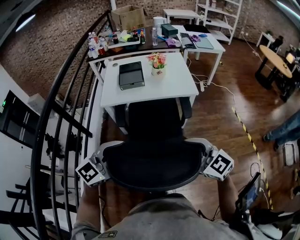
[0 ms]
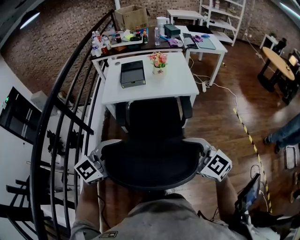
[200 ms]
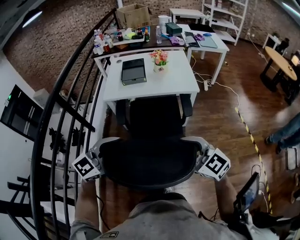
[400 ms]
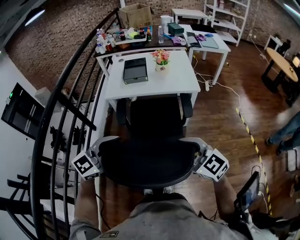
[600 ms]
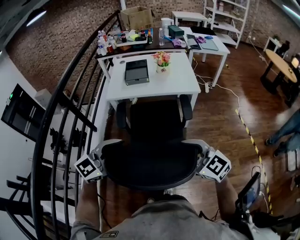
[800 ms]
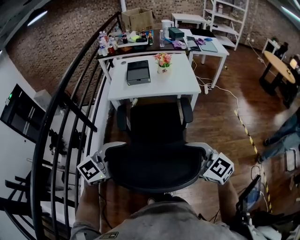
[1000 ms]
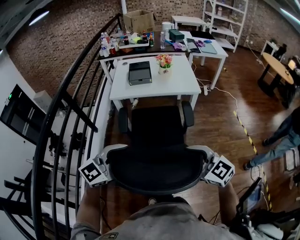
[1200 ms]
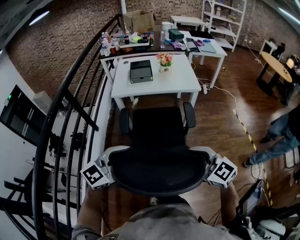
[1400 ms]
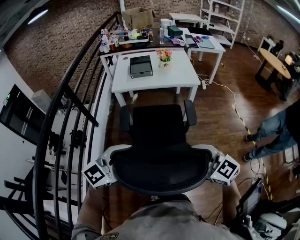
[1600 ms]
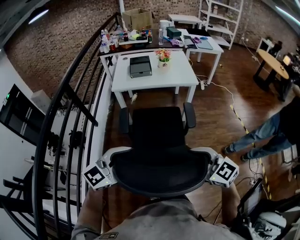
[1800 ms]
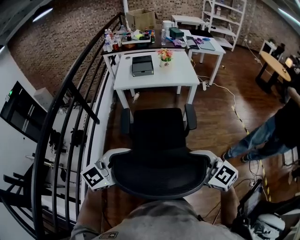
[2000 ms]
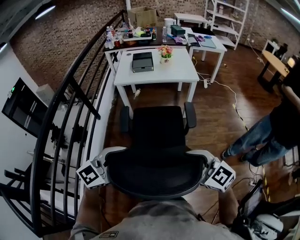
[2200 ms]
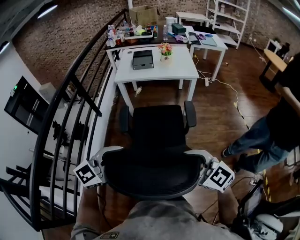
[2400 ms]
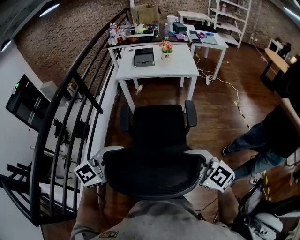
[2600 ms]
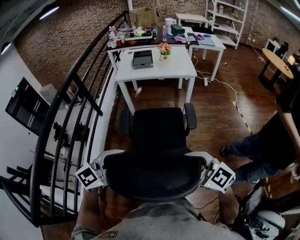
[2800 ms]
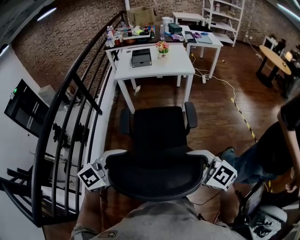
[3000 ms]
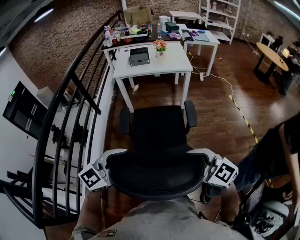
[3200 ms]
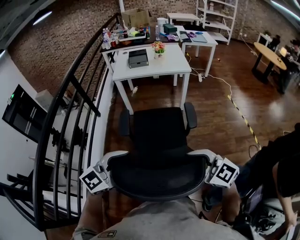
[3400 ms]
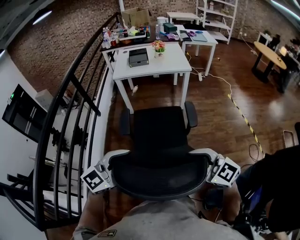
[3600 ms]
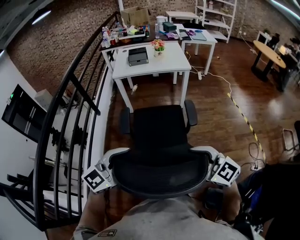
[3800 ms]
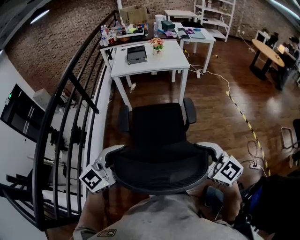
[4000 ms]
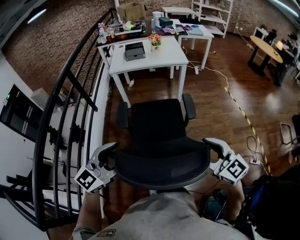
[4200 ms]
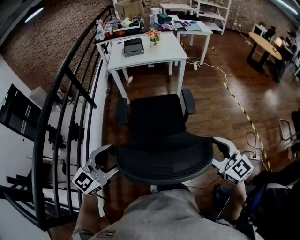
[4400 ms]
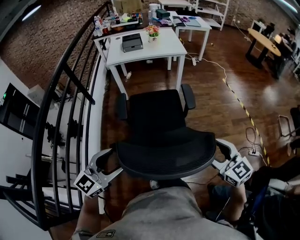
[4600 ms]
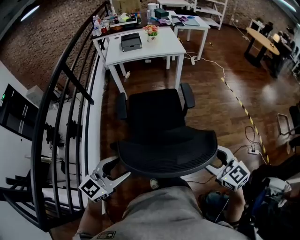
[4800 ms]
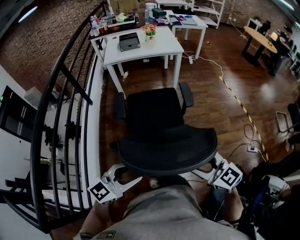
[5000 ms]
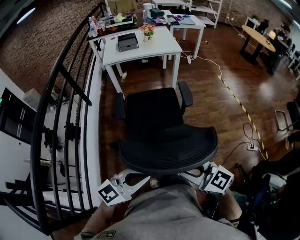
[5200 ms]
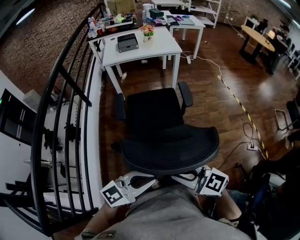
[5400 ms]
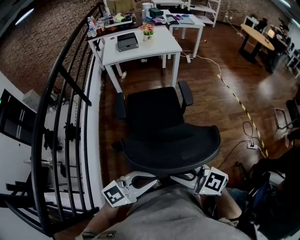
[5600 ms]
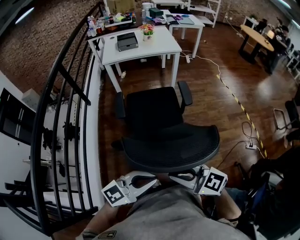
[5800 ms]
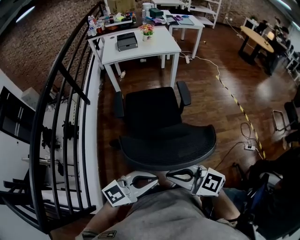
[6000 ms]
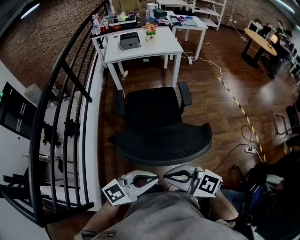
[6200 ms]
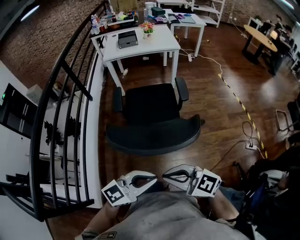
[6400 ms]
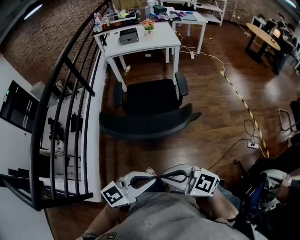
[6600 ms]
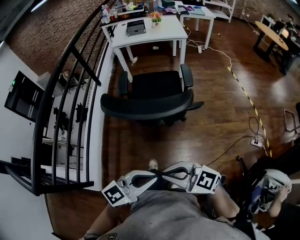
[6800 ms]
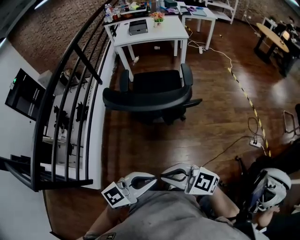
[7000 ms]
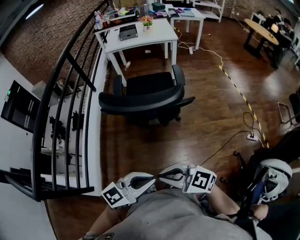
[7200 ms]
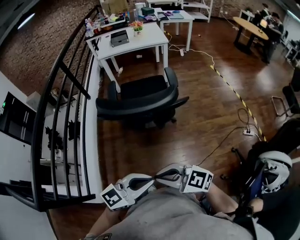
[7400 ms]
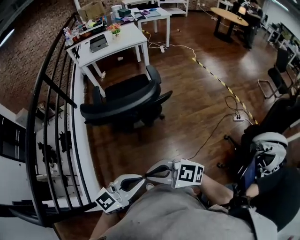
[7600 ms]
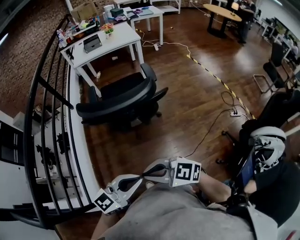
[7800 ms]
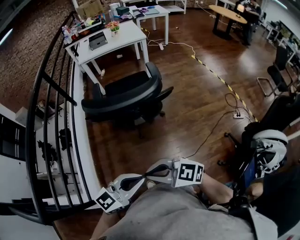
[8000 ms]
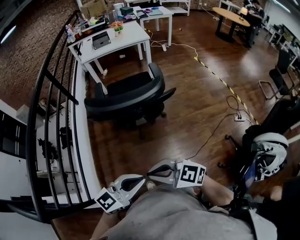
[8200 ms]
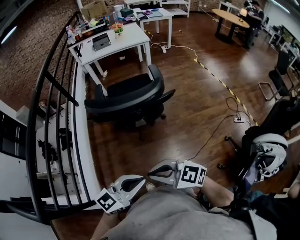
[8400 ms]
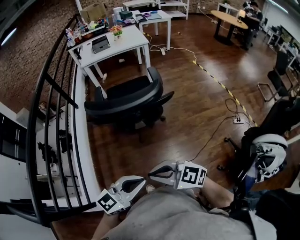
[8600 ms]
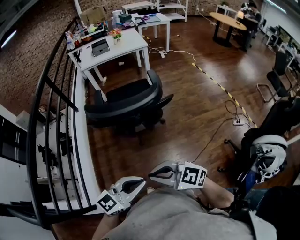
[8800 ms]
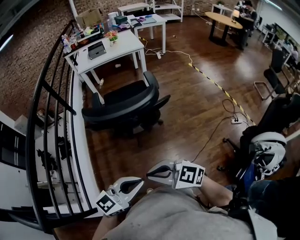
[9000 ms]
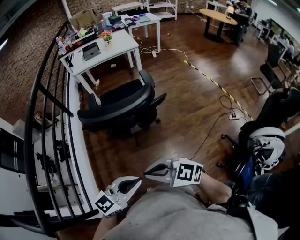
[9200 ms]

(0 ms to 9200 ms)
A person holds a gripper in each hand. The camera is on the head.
0 ms - 1600 ms: The grippers both shift backward by roughly 20 cm.
1600 ms - 3000 ms: The two grippers go some 20 cm backward.
3000 ms - 4600 ms: The left gripper travels to the left and backward by roughly 10 cm. Meanwhile the right gripper is displaced to the right and backward by some 10 cm, and swivels roughly 30 degrees.
4600 ms - 6200 ms: The left gripper moves about 20 cm, rotates some 30 degrees, and closes; the right gripper moves about 20 cm, rotates approximately 40 degrees, and closes up.
6200 ms - 7600 ms: The right gripper changes place by approximately 15 cm, while the left gripper shifts by about 15 cm.
7600 ms - 9200 ms: There are only small adjustments of the grippers.

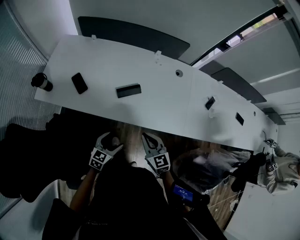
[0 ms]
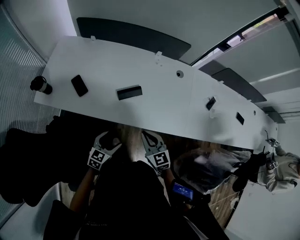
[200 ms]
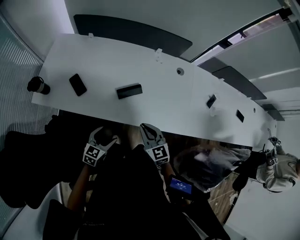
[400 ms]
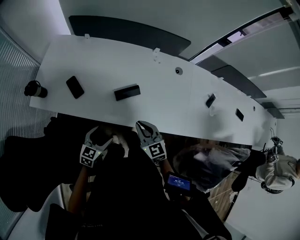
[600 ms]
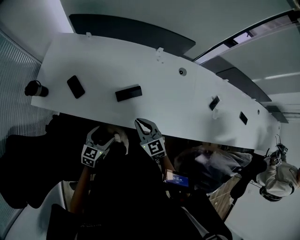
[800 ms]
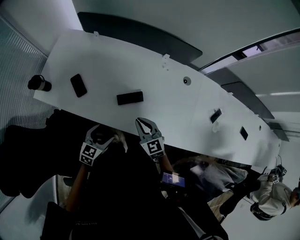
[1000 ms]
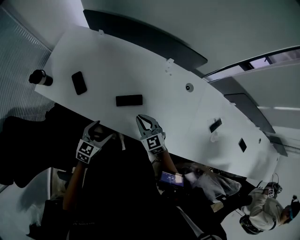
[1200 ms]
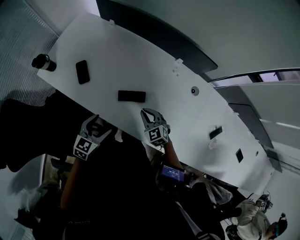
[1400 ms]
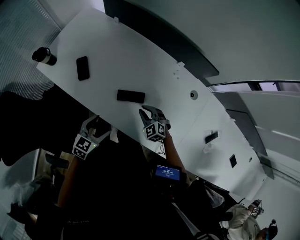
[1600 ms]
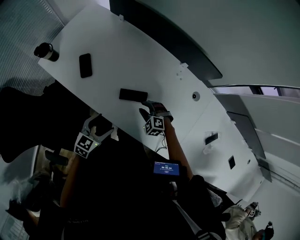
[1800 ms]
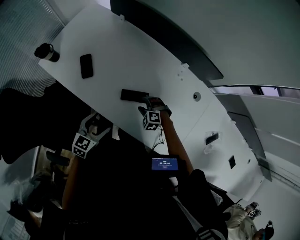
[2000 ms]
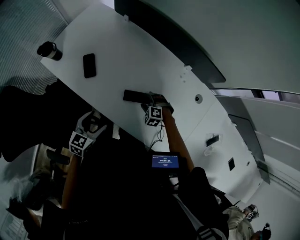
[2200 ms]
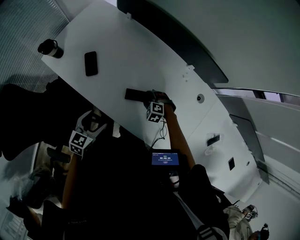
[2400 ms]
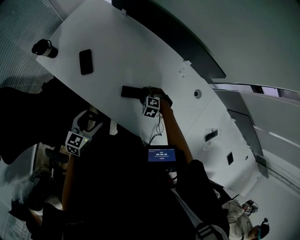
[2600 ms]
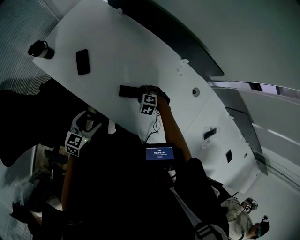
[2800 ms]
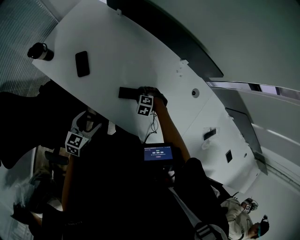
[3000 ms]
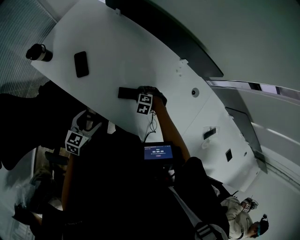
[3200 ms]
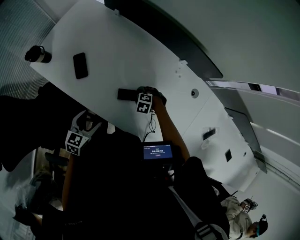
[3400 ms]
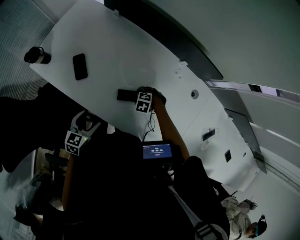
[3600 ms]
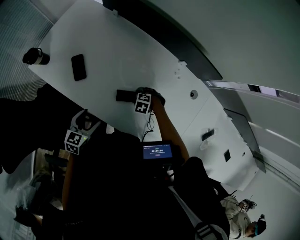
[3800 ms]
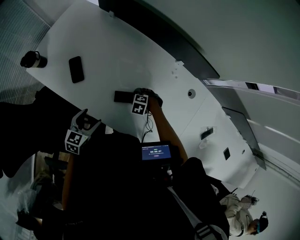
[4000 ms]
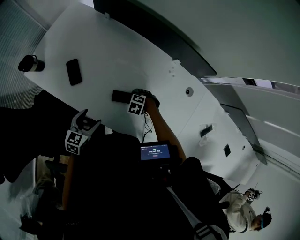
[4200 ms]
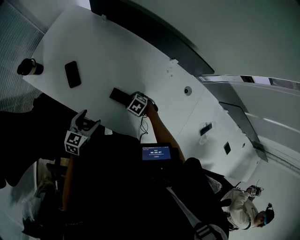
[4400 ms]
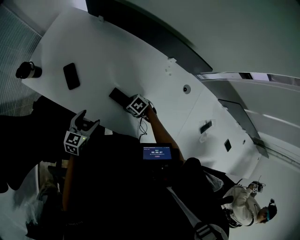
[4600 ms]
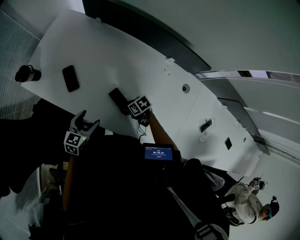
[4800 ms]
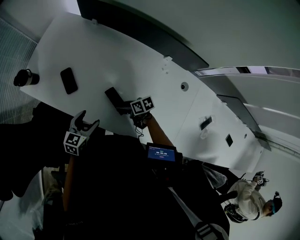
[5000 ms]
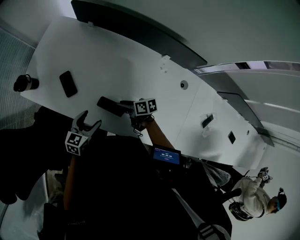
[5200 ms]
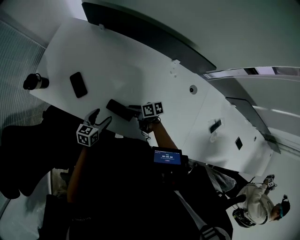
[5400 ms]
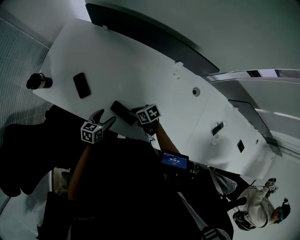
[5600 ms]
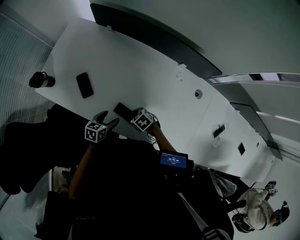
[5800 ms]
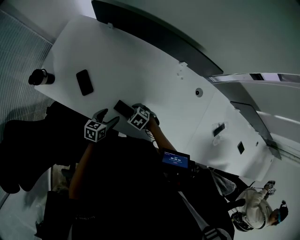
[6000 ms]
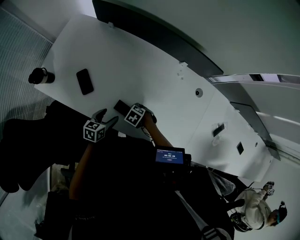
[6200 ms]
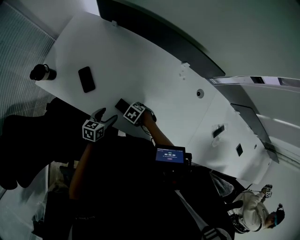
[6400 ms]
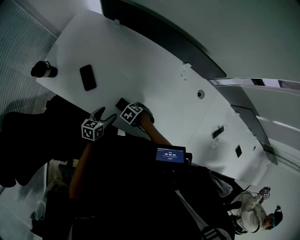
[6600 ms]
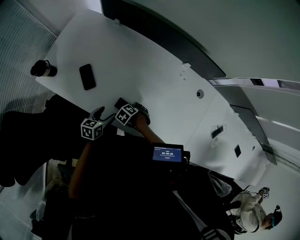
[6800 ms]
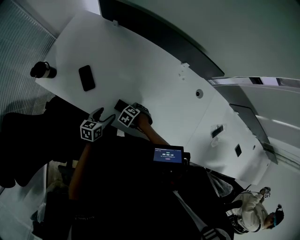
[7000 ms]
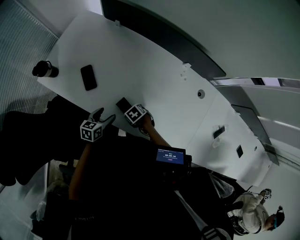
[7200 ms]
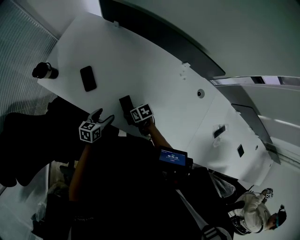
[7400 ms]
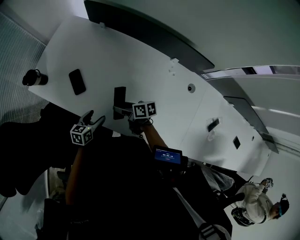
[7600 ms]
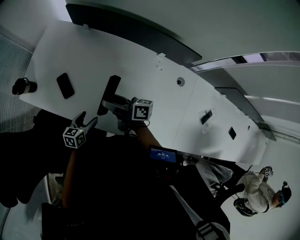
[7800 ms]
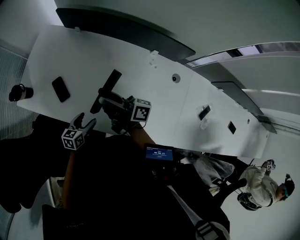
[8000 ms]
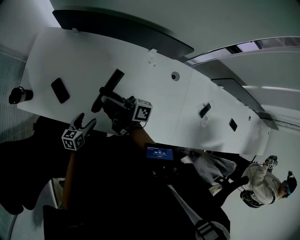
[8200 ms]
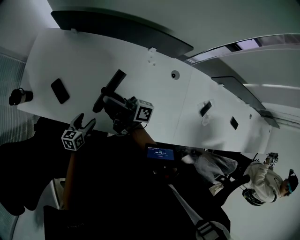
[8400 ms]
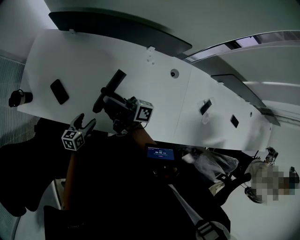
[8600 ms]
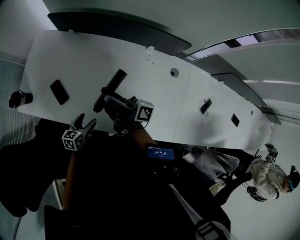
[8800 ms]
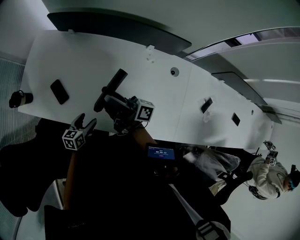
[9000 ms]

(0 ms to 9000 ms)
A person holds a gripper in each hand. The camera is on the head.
0 ms - 1600 ms: The left gripper shifts by some 15 cm, while the right gripper ends up roughly 25 cm from where it was, and changes its angle by roughly 50 degrees.
1600 ms - 3000 ms: The left gripper changes place by roughly 5 cm. Meanwhile the right gripper travels downward by roughly 10 cm, angles its fingers downward, by approximately 30 degrees, and opens its fingers.
3000 ms - 4400 ms: The right gripper changes its angle by approximately 30 degrees. The left gripper ends up roughly 5 cm from where it was.
4400 ms - 6000 ms: The left gripper is displaced downward by about 10 cm. The right gripper moves some 10 cm, and closes, then reopens.
6000 ms - 7600 ms: The right gripper is displaced upward by roughly 5 cm, and tilts its fingers about 40 degrees upward.
7600 ms - 9000 ms: The right gripper shifts approximately 20 cm upward, and angles its fingers upward, by some 50 degrees.

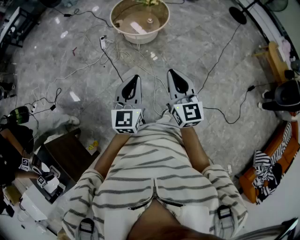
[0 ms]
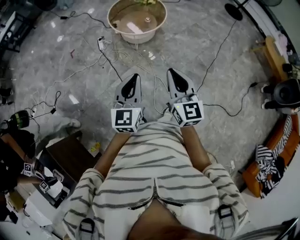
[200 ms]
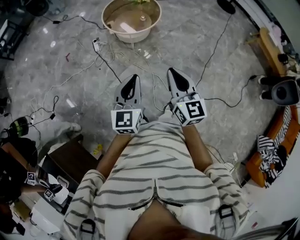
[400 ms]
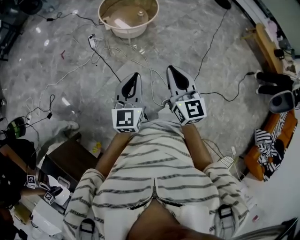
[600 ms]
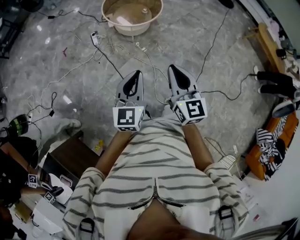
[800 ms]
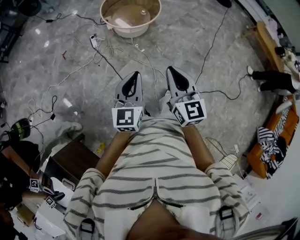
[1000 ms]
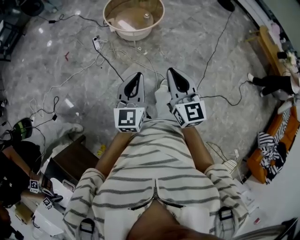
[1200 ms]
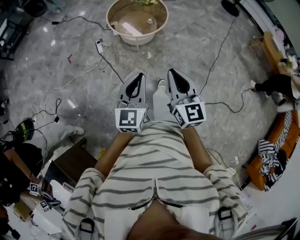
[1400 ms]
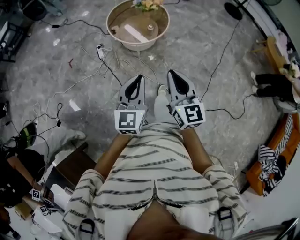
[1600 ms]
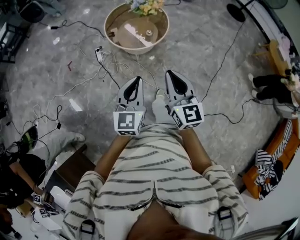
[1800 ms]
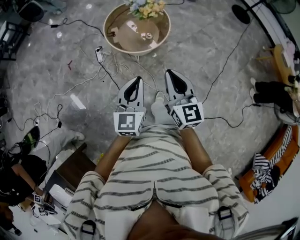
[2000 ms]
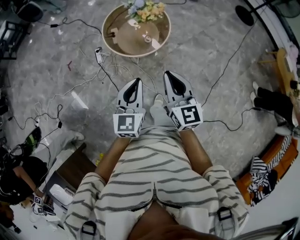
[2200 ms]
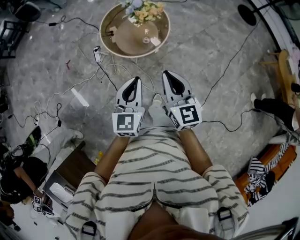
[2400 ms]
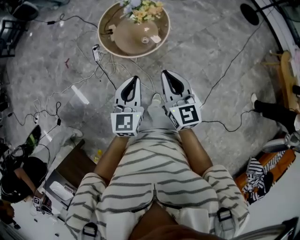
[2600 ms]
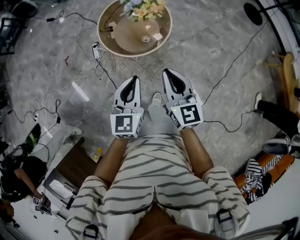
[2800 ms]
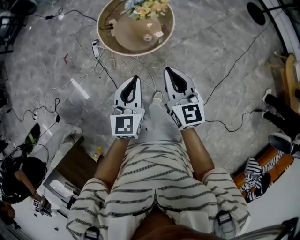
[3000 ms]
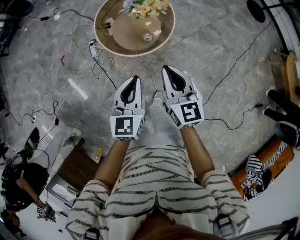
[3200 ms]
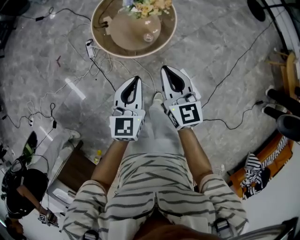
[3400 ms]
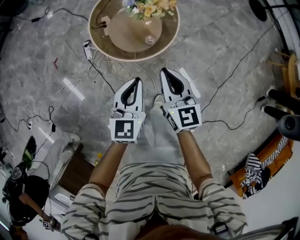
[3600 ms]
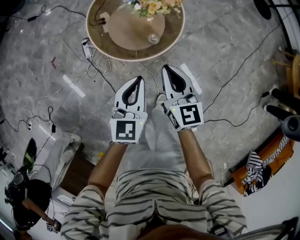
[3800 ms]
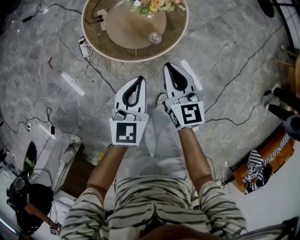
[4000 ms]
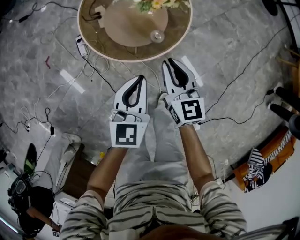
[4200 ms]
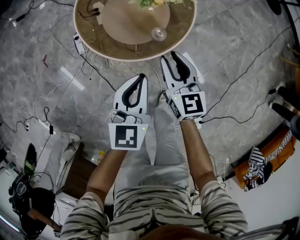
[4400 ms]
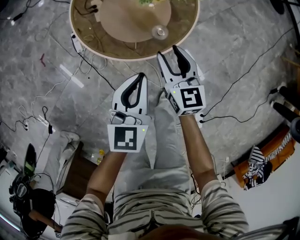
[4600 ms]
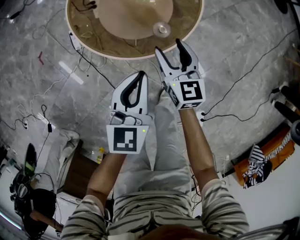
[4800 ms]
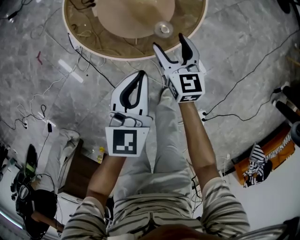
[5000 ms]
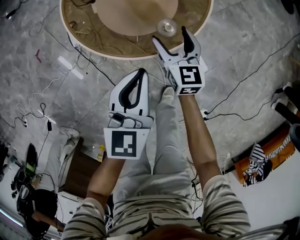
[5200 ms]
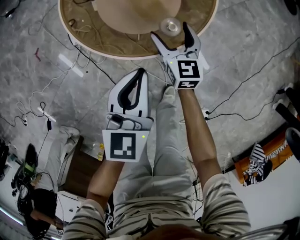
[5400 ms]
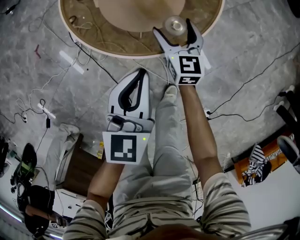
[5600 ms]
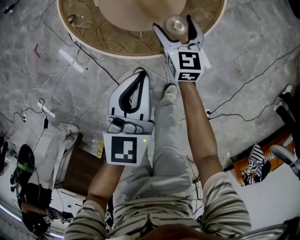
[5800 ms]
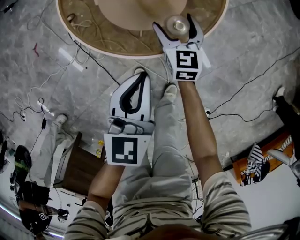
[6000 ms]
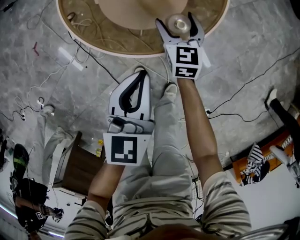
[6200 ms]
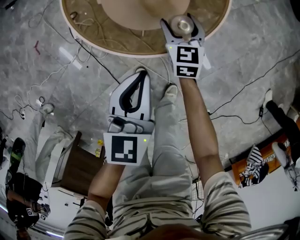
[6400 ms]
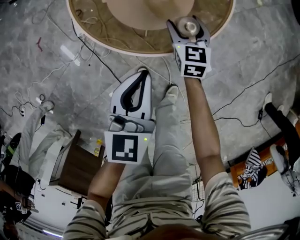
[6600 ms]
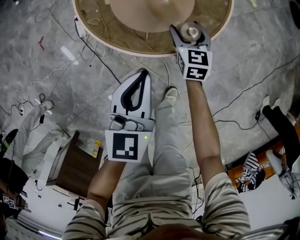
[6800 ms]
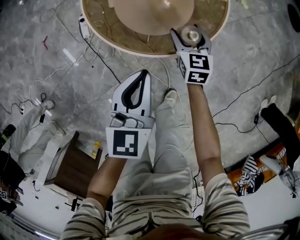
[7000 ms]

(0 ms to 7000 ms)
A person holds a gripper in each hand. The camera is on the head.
0 ms - 1400 ms: The left gripper heads to the left and forward, covering approximately 10 cm; the right gripper goes roughly 10 cm to the left.
1400 ms - 2800 ms: The grippers both shift forward by some 35 cm.
2800 ms - 4200 ms: The two grippers go approximately 30 cm downward and forward.
4200 ms - 5600 ms: The right gripper travels downward and forward by approximately 25 cm, and opens up; the left gripper is displaced downward by some 10 cm.
5600 ms - 7000 ms: There are only small adjustments of the grippers.
